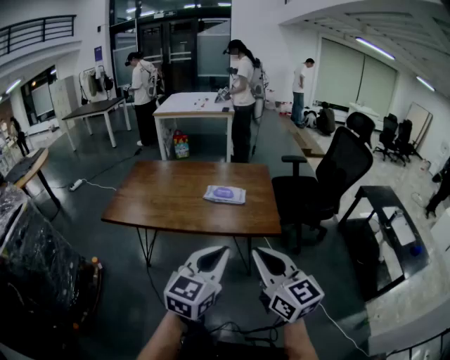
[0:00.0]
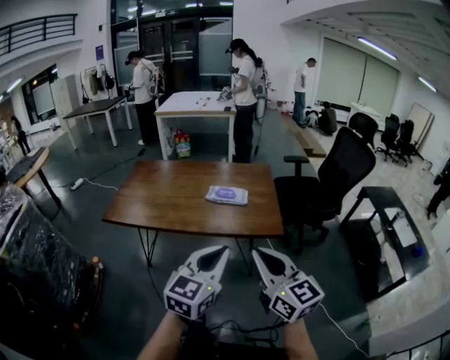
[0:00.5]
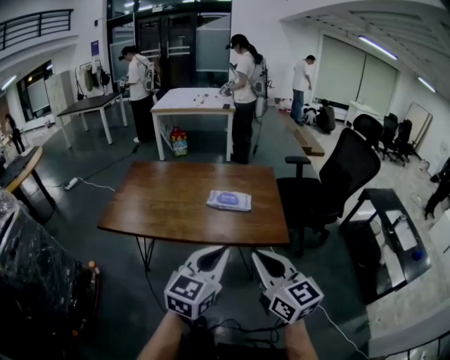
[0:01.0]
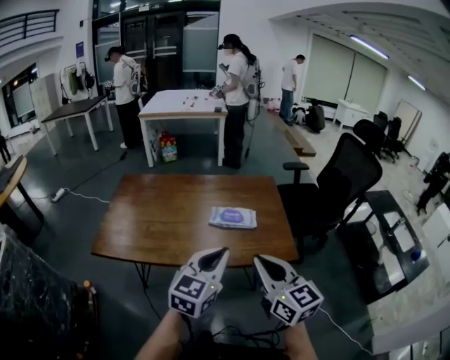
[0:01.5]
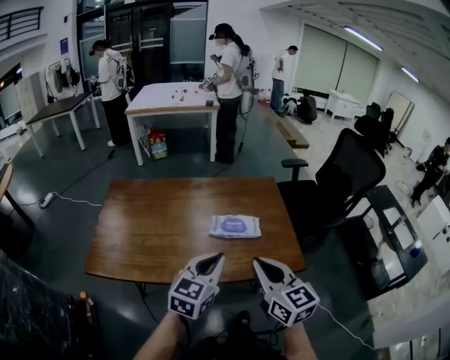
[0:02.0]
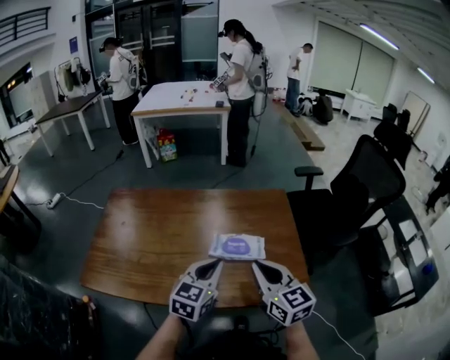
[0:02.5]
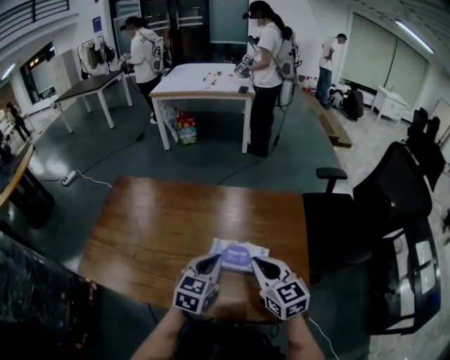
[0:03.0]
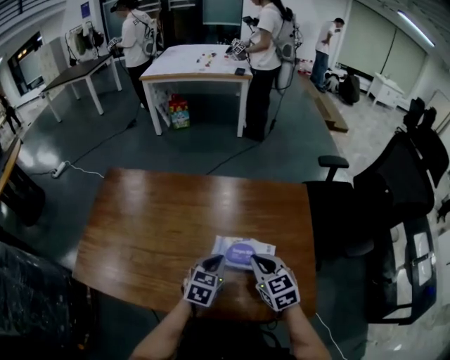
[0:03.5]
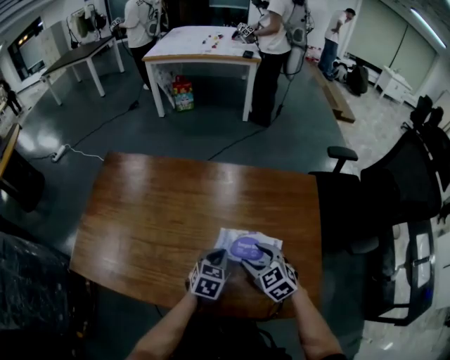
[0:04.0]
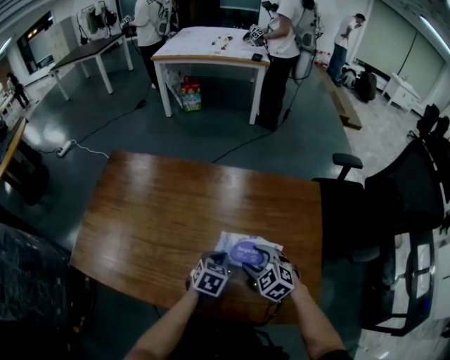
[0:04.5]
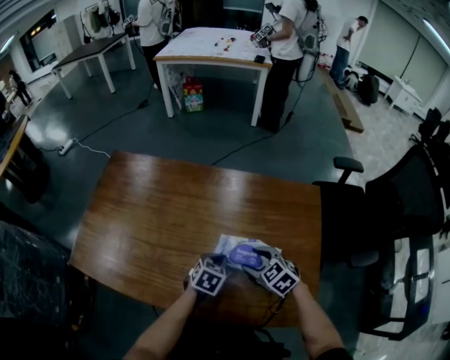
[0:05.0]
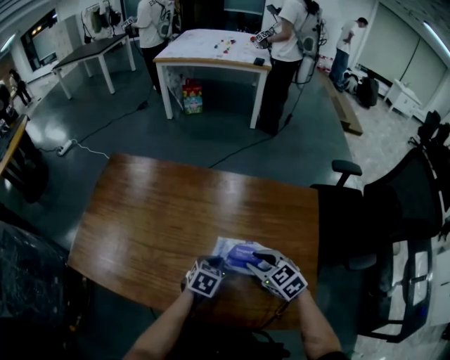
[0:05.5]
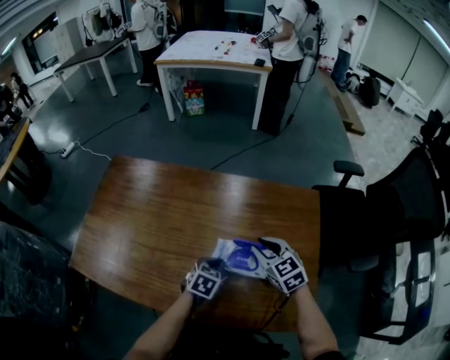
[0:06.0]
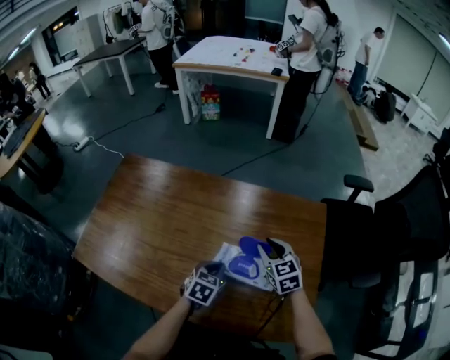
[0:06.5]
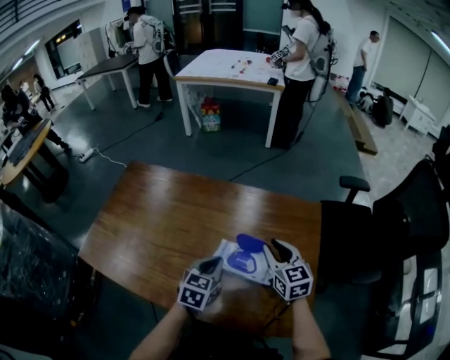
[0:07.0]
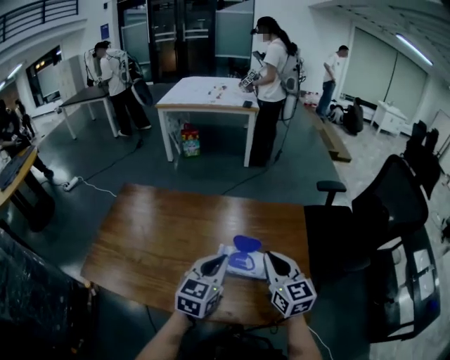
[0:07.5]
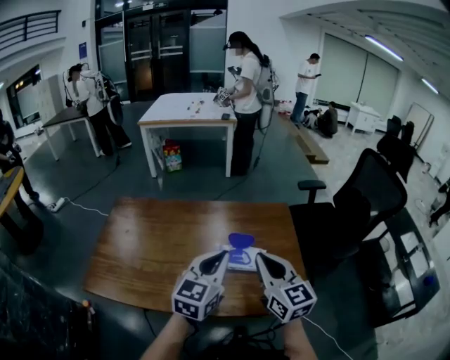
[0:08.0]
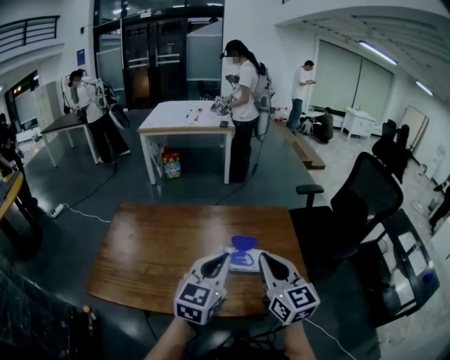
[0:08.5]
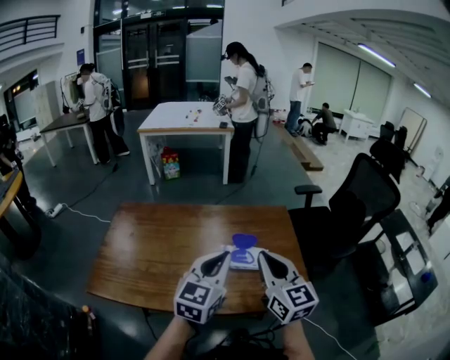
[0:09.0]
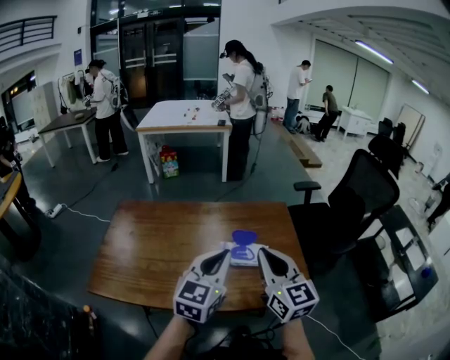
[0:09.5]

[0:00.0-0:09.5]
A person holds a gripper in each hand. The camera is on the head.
0:00.0 to 0:02.0: Both grippers move forward and to the left, approximately 30 cm.
0:02.0 to 0:04.0: The right gripper shifts about 35 cm forward and downward, tips its fingers downward by about 30 degrees, and opens its fingers. The left gripper travels downward and forward by roughly 30 cm, and swivels some 30 degrees.
0:04.0 to 0:05.5: The right gripper closes up.
0:05.5 to 0:07.5: The grippers both shift upward by approximately 20 cm. The right gripper angles its fingers upward, by about 30 degrees, and closes; the left gripper tilts its fingers some 40 degrees upward.
0:07.5 to 0:09.5: The left gripper shifts approximately 15 cm upward and backward, while the right gripper goes some 15 cm backward and upward.

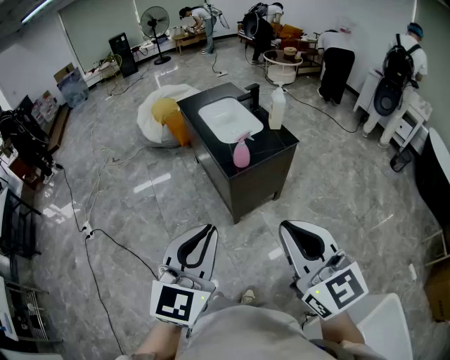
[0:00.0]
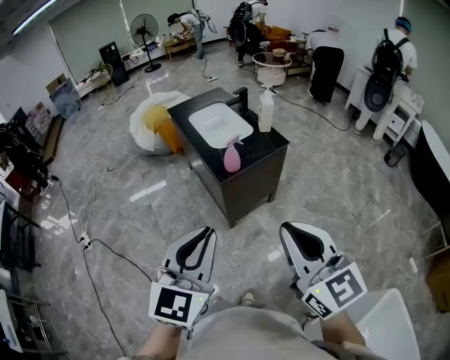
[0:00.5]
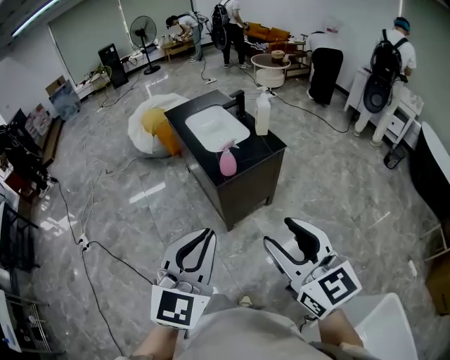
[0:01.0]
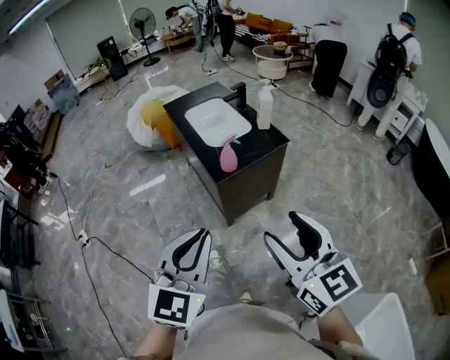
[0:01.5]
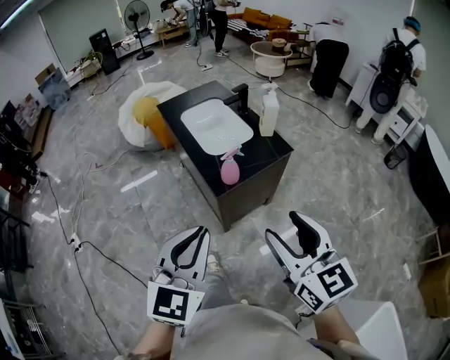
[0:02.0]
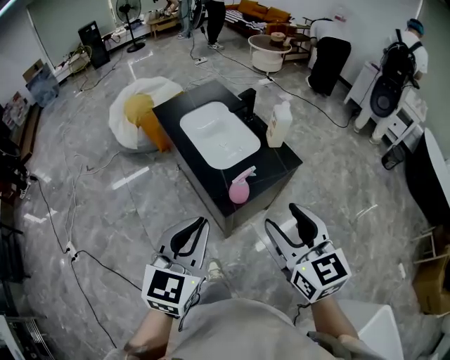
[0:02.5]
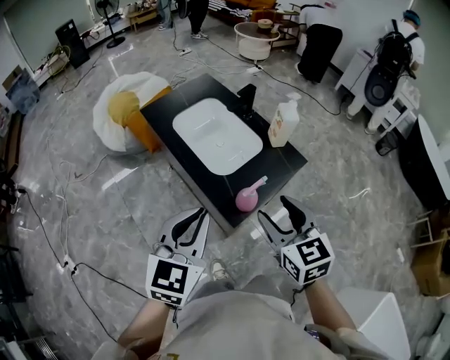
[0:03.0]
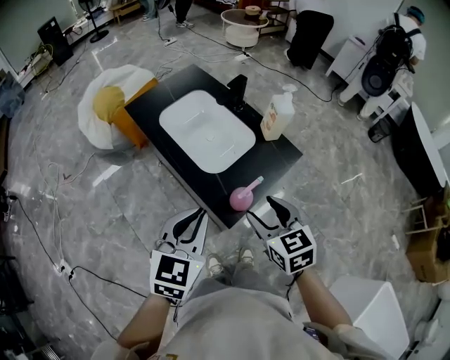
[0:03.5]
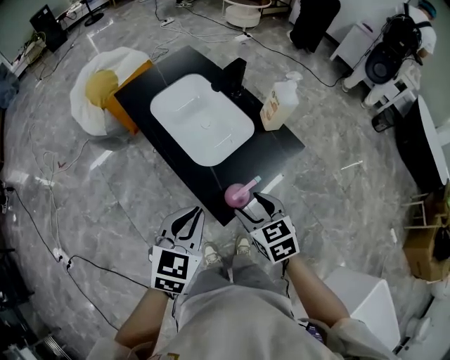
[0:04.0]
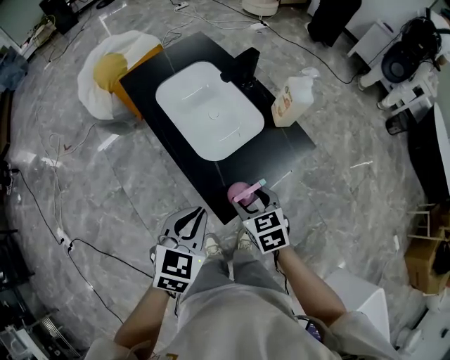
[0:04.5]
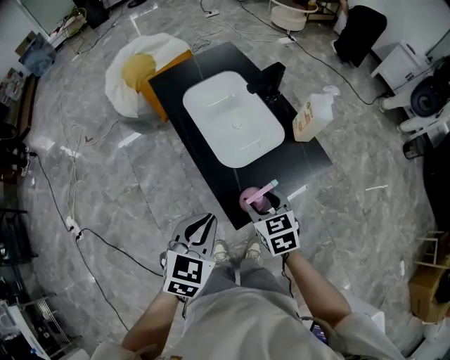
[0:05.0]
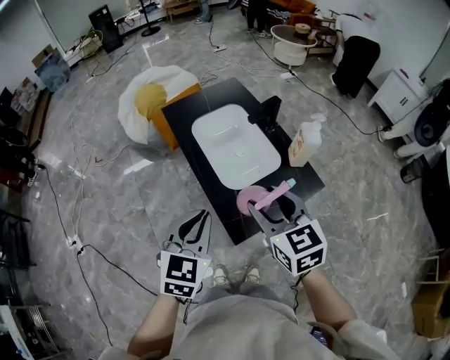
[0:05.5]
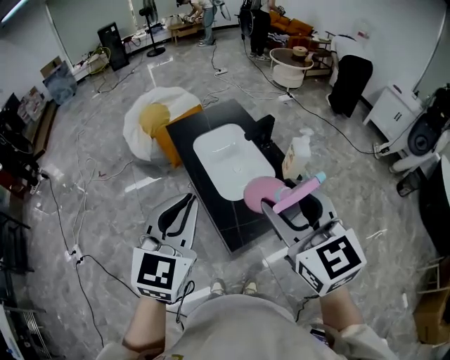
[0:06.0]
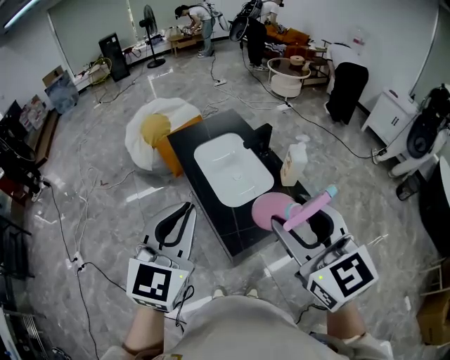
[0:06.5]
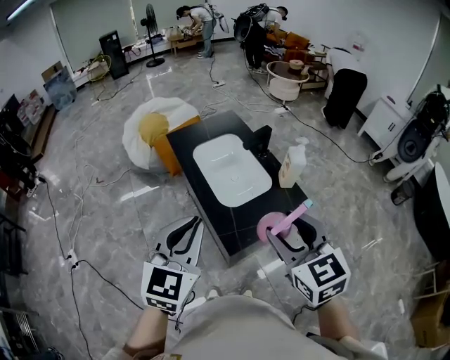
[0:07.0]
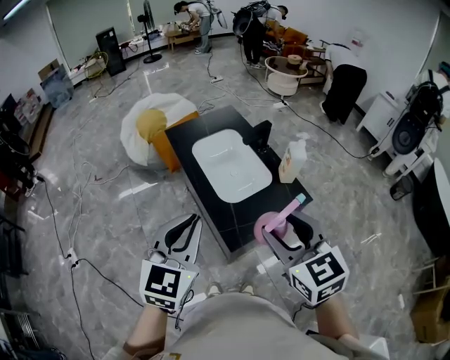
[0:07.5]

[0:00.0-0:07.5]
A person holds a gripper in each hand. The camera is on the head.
0:00.0 to 0:02.0: Both grippers travel together forward, approximately 15 cm. The right gripper opens its fingers.
0:02.0 to 0:04.0: The left gripper heads forward and downward, covering approximately 35 cm, and turns by approximately 30 degrees. The right gripper is displaced forward, downward and to the left by some 40 cm, and tilts its fingers some 30 degrees downward.
0:04.0 to 0:05.5: The left gripper heads upward, covering approximately 5 cm, while the right gripper goes some 15 cm upward, and rotates approximately 20 degrees.
0:05.5 to 0:07.5: The right gripper travels backward and upward by roughly 15 cm; the left gripper is displaced upward and backward by about 10 cm.

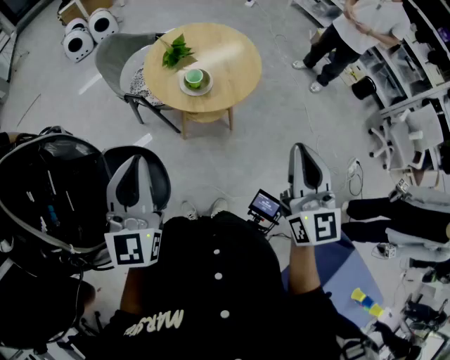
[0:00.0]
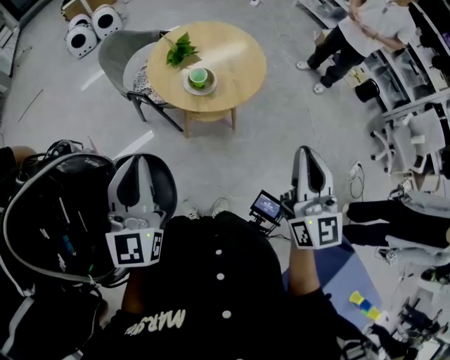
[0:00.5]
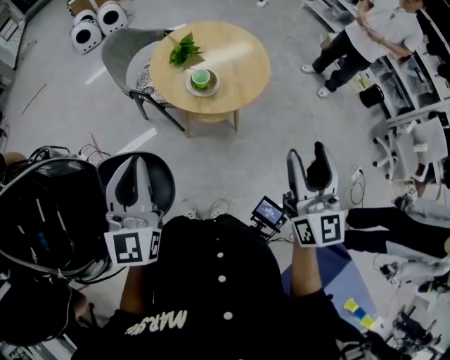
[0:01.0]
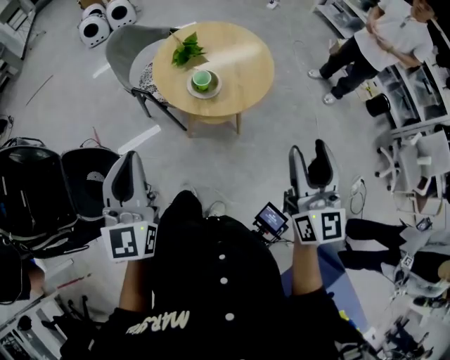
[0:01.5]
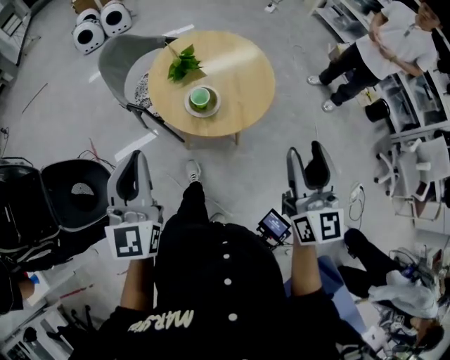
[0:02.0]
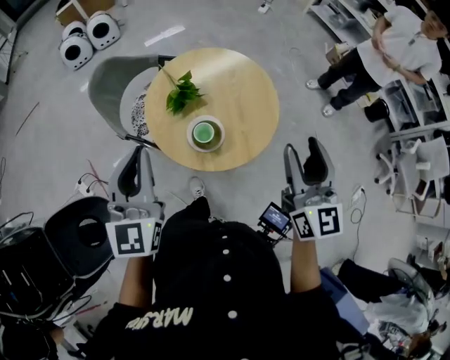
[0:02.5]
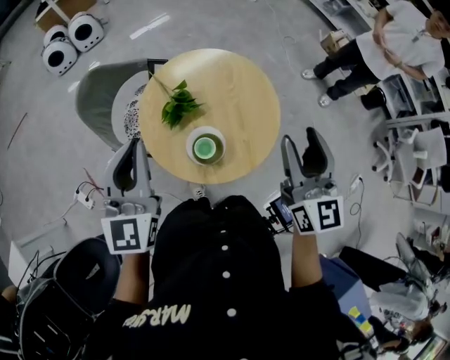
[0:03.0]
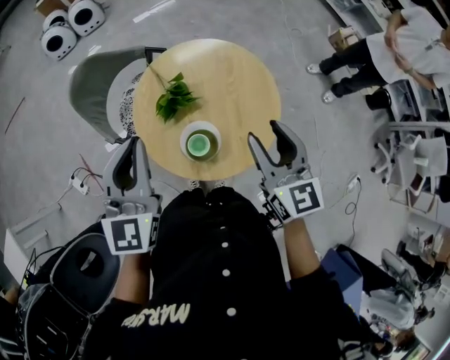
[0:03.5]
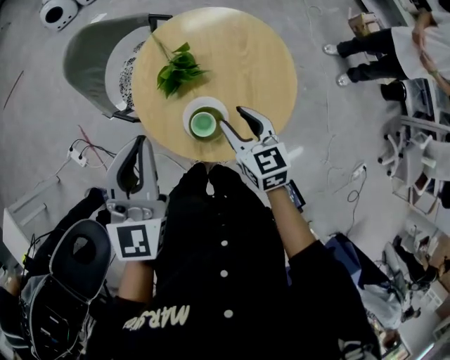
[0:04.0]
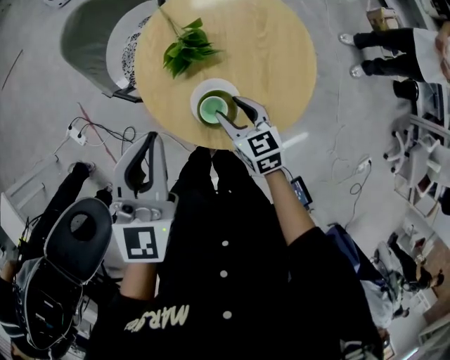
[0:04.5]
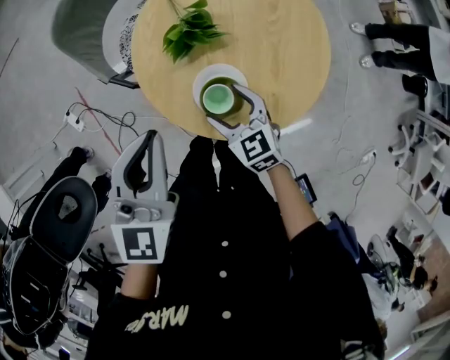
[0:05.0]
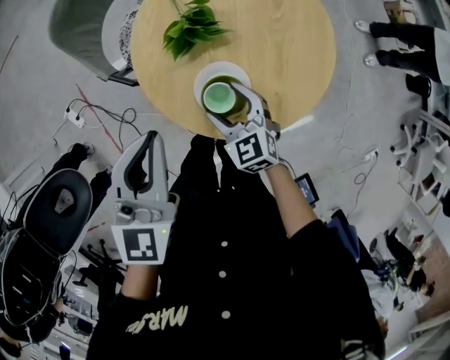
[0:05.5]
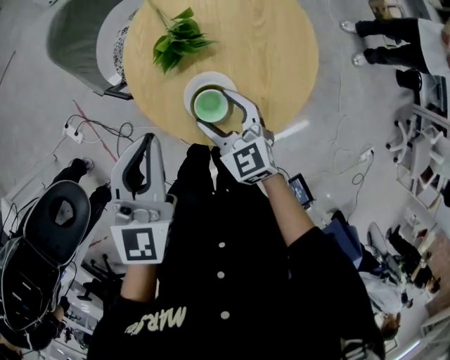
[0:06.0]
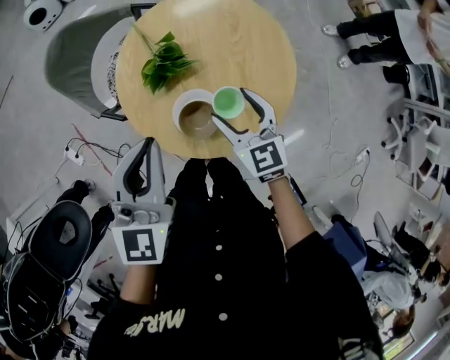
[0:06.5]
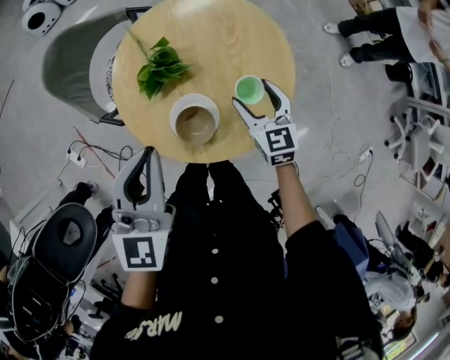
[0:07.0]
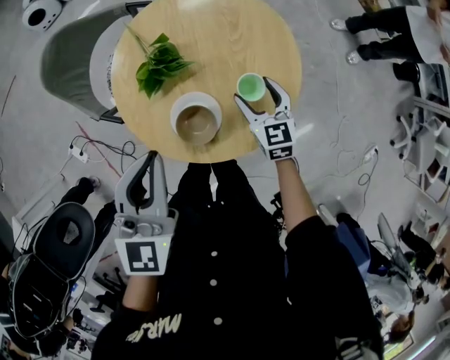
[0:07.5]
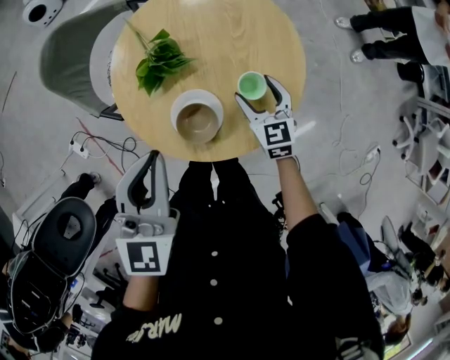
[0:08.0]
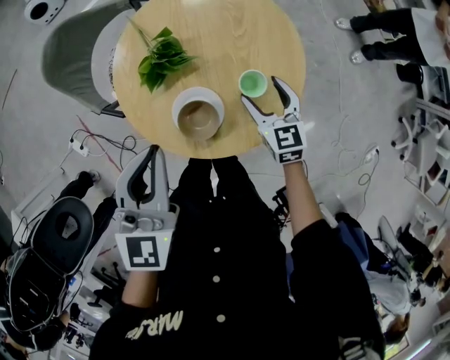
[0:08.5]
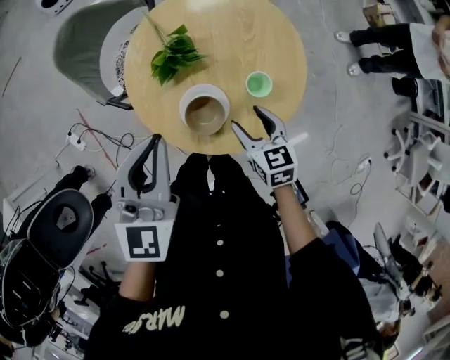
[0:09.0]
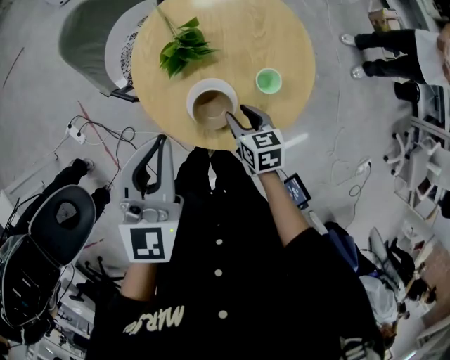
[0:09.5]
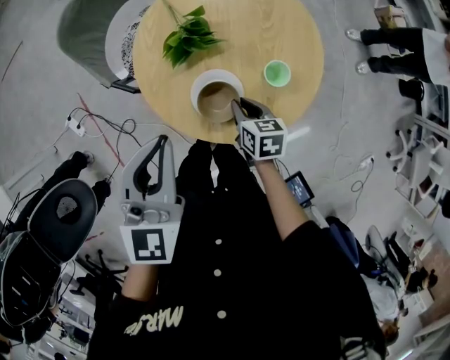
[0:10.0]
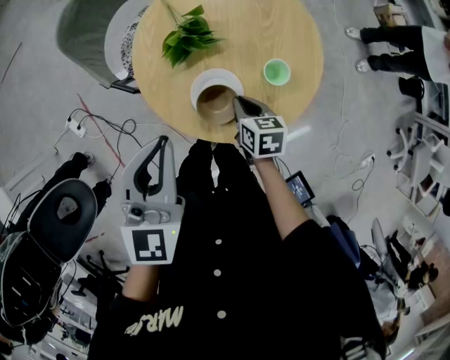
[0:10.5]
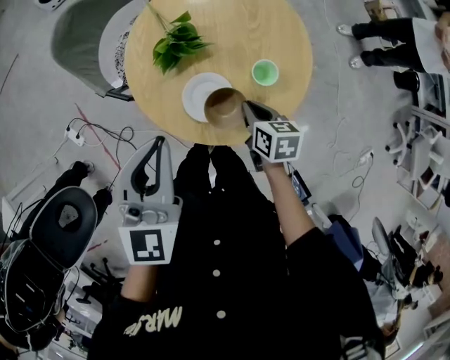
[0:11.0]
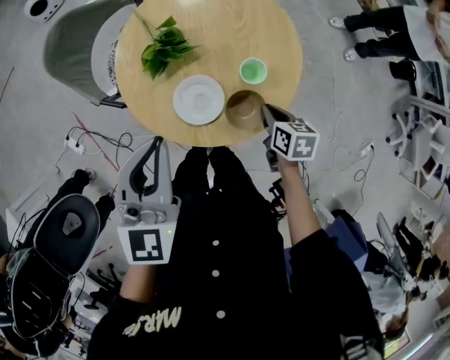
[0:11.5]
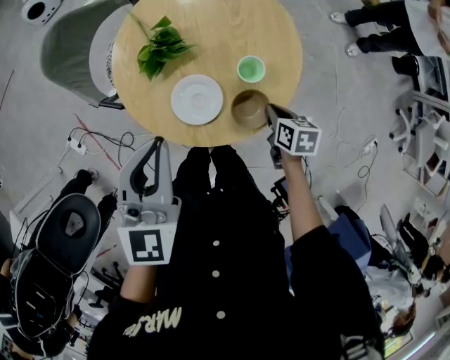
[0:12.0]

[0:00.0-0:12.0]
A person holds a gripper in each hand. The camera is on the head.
0:00.0 to 0:02.0: Both grippers move forward, approximately 15 cm. The right gripper opens its fingers.
0:02.0 to 0:04.0: The left gripper shifts some 30 cm forward; the right gripper goes roughly 40 cm forward, downward and to the left, and angles its fingers downward, by approximately 30 degrees.
0:04.0 to 0:06.0: The left gripper moves downward, roughly 5 cm. The right gripper goes some 10 cm downward and to the left, and opens.
0:06.0 to 0:08.0: The left gripper travels to the right by approximately 5 cm. The right gripper travels to the right and forward by some 20 cm.
0:08.0 to 0:10.0: The left gripper moves to the left, roughly 5 cm. The right gripper travels to the left and backward by some 15 cm, rotates approximately 30 degrees, and closes.
0:10.0 to 0:12.0: The right gripper travels to the right by roughly 15 cm. The left gripper shifts about 5 cm to the right.
